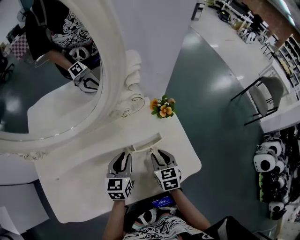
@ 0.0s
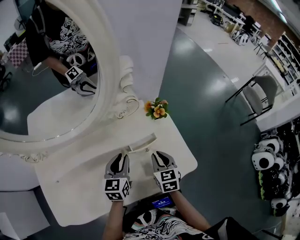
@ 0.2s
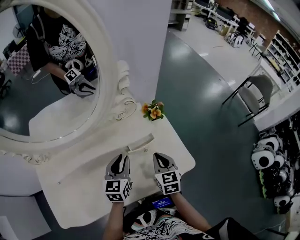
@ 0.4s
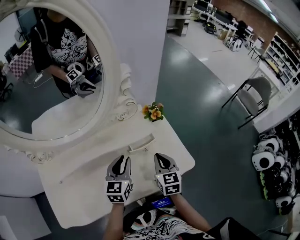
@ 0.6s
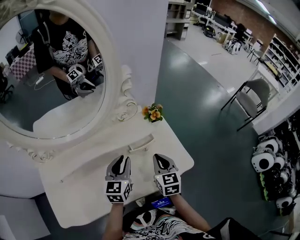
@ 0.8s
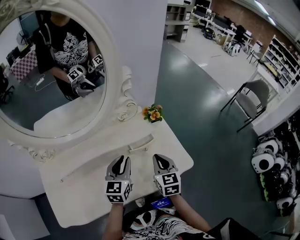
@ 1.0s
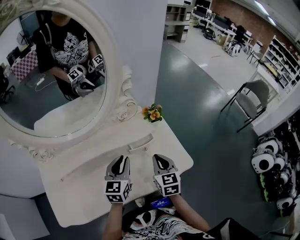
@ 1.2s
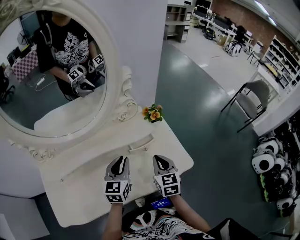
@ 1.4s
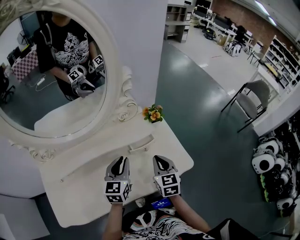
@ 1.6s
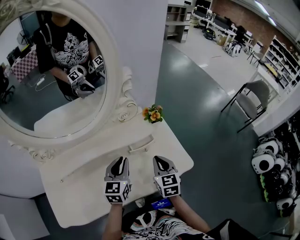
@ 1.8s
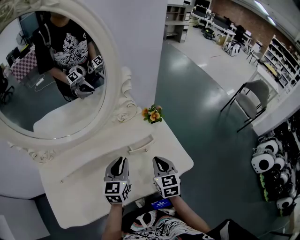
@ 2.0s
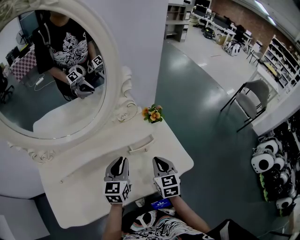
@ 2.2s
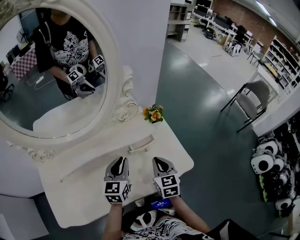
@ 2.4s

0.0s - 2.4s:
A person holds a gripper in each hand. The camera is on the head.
0.0s - 1.2s: The left gripper shifts about 10 cm upward. Meanwhile the right gripper moves upward and backward, some 10 cm, and closes its fingers.
1.2s - 2.4s: The grippers make only small movements.

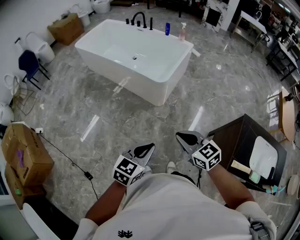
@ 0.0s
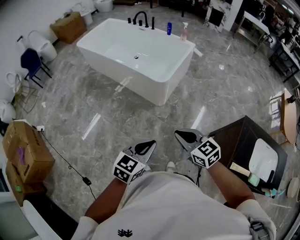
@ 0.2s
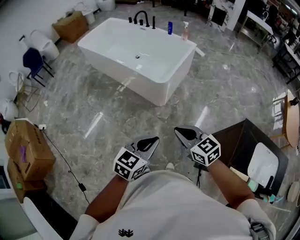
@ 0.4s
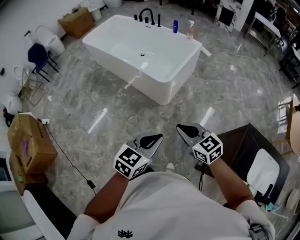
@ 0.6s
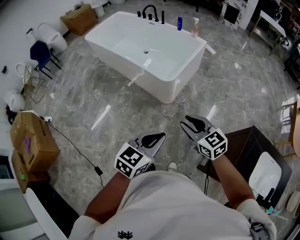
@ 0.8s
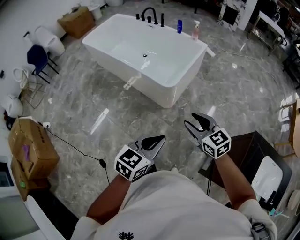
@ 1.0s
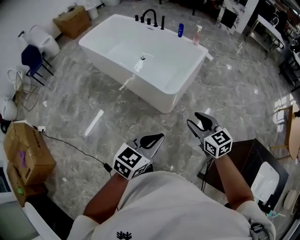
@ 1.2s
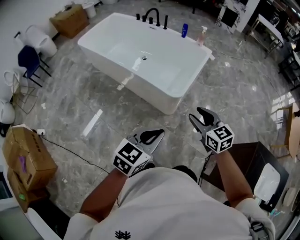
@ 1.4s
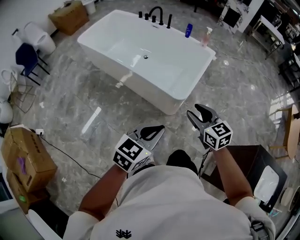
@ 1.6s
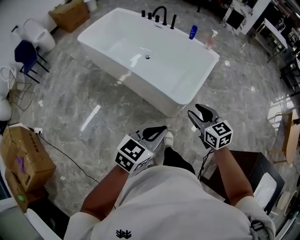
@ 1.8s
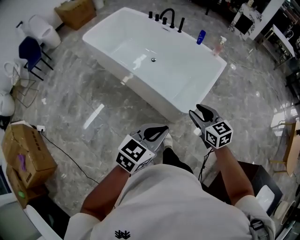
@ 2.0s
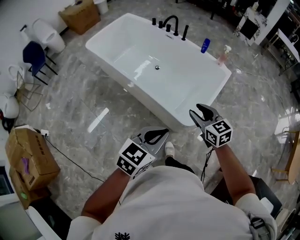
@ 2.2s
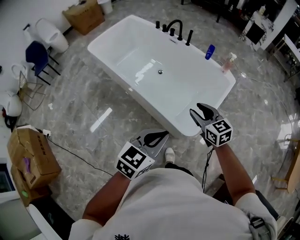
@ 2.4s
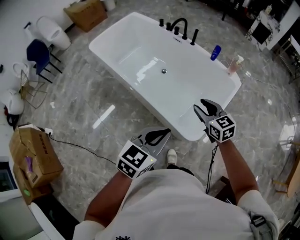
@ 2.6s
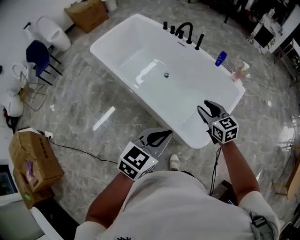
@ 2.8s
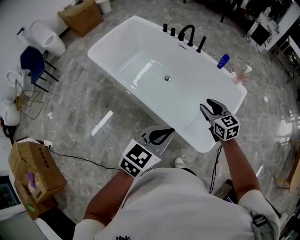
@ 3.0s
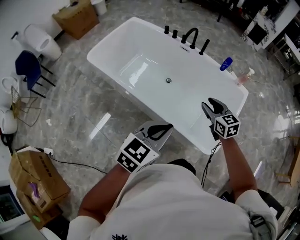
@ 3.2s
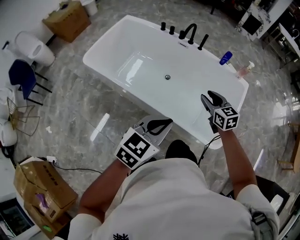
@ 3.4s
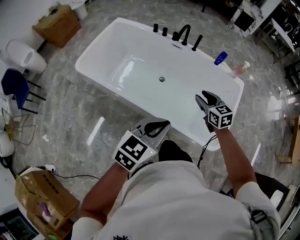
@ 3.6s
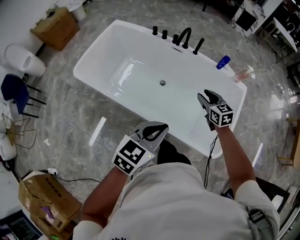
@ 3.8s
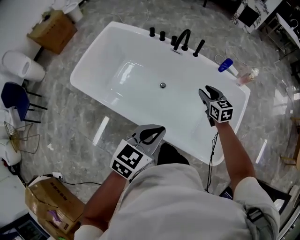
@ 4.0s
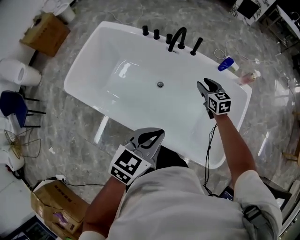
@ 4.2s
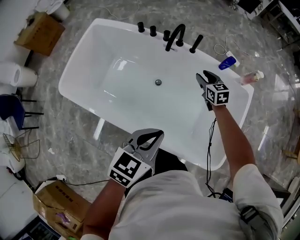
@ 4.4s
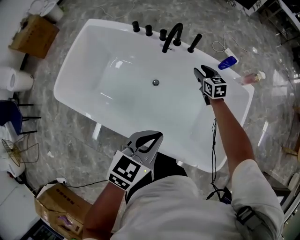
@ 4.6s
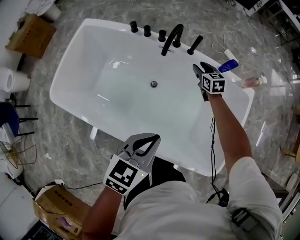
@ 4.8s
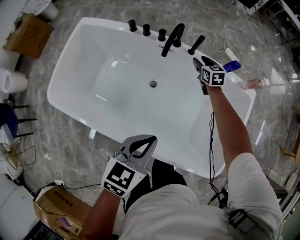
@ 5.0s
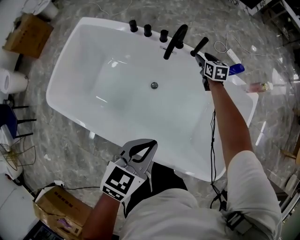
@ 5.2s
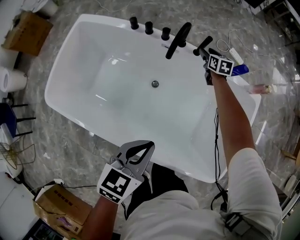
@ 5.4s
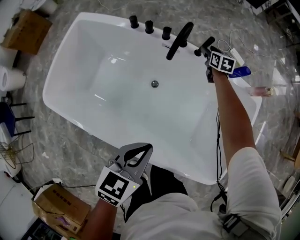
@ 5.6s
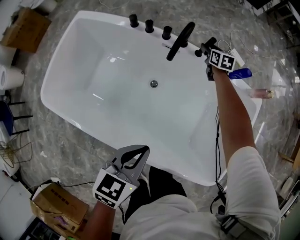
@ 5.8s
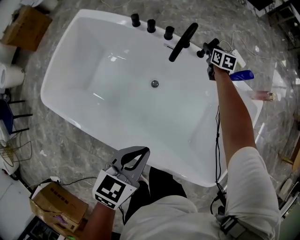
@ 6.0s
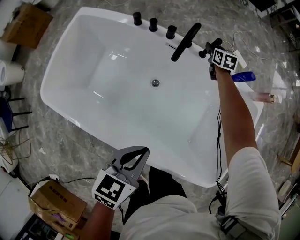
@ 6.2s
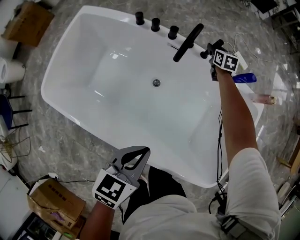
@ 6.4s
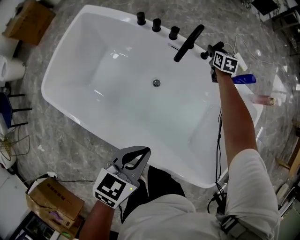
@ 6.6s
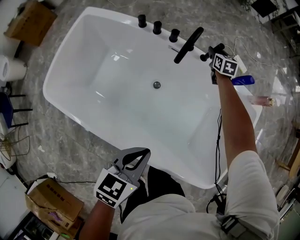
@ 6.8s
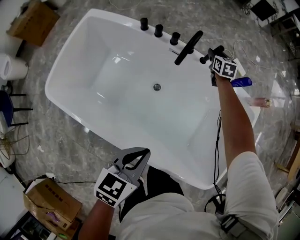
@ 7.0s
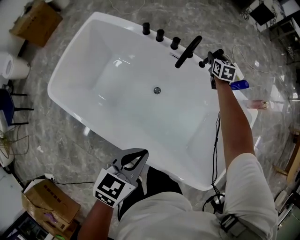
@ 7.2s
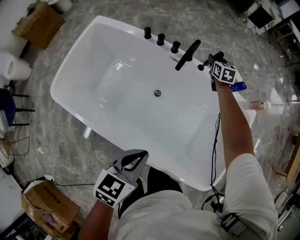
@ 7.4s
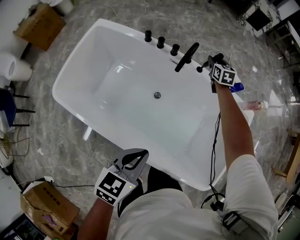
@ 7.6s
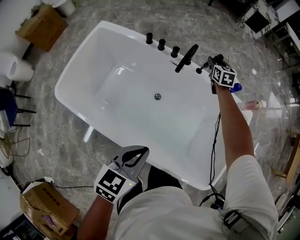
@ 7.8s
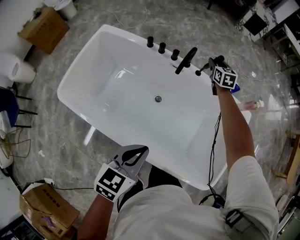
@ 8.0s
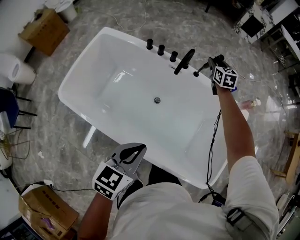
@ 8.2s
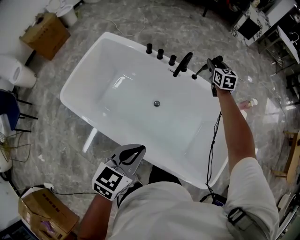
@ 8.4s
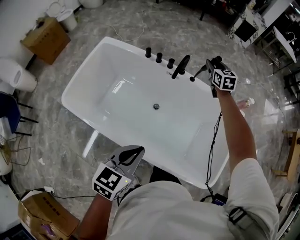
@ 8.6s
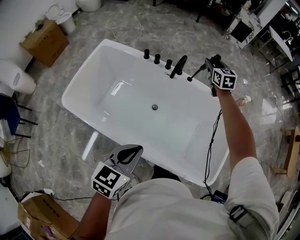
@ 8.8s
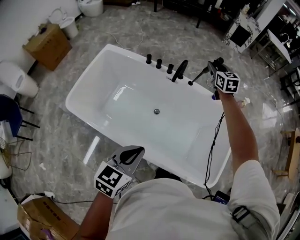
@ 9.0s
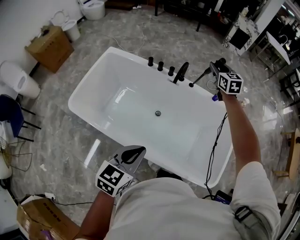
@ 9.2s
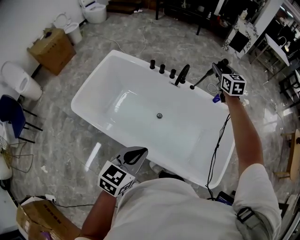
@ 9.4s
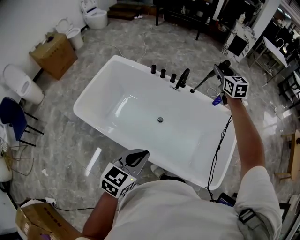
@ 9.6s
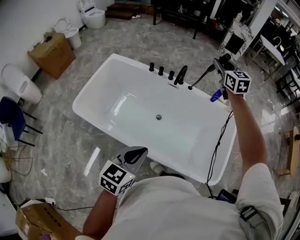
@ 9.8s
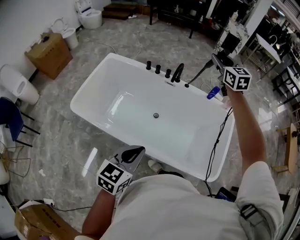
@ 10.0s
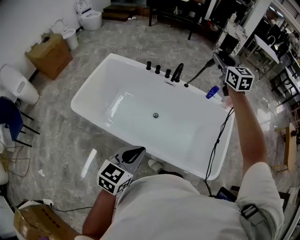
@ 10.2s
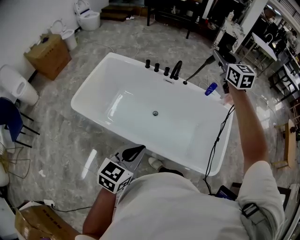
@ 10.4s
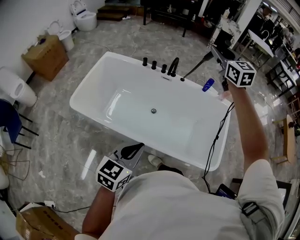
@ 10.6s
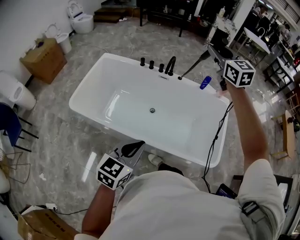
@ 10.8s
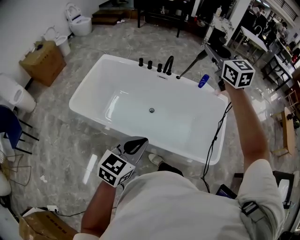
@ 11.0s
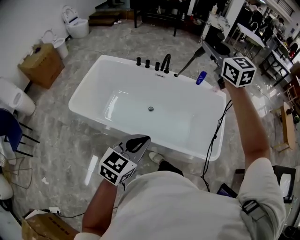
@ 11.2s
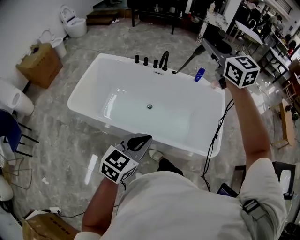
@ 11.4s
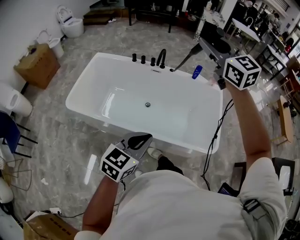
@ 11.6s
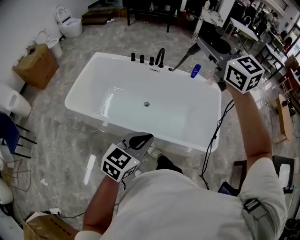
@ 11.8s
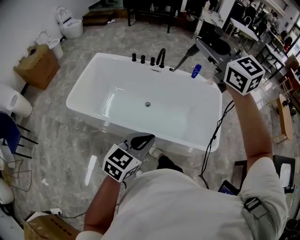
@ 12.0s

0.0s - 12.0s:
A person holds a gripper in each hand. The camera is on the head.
0.0s - 1.6s: The two grippers go some 35 cm forward. The right gripper opens.
1.6s - 3.0s: The pair of grippers is taken forward, approximately 50 cm.
3.0s - 4.4s: The right gripper travels forward by approximately 40 cm, and turns by approximately 20 degrees. The left gripper heads forward and to the left, covering roughly 35 cm.
4.4s - 6.0s: The right gripper goes about 30 cm forward and downward. The left gripper heads downward, forward and to the left, covering roughly 15 cm.
6.0s - 7.6s: The left gripper moves upward and backward, approximately 10 cm; the right gripper travels upward by roughly 15 cm.
7.6s - 9.0s: The right gripper heads upward and backward, covering approximately 30 cm, while the left gripper heads backward and upward, covering roughly 15 cm.
9.0s - 10.4s: The right gripper shifts roughly 30 cm upward and backward. Meanwhile the left gripper shifts approximately 15 cm backward.
10.4s - 12.0s: The left gripper is displaced backward and to the right by approximately 10 cm. Meanwhile the right gripper is displaced backward by approximately 30 cm.

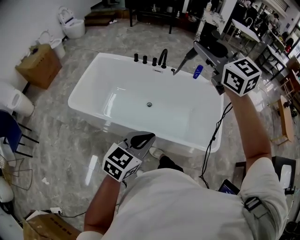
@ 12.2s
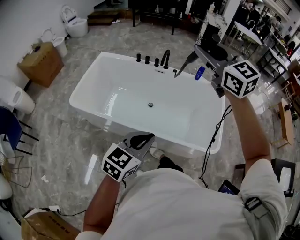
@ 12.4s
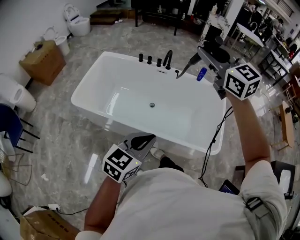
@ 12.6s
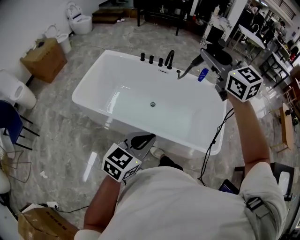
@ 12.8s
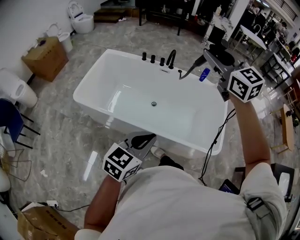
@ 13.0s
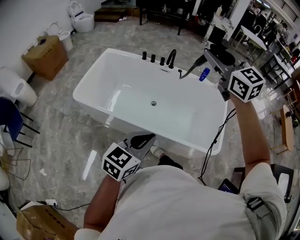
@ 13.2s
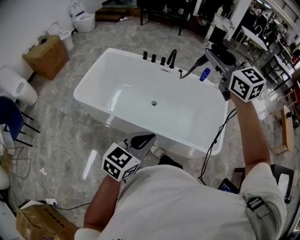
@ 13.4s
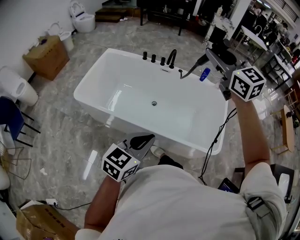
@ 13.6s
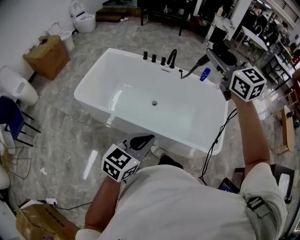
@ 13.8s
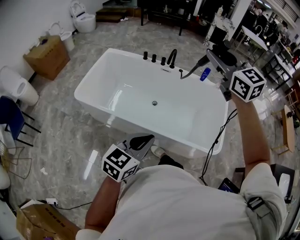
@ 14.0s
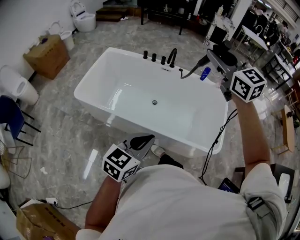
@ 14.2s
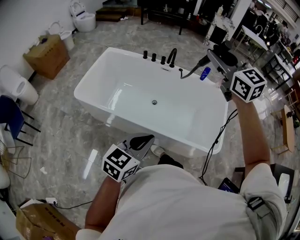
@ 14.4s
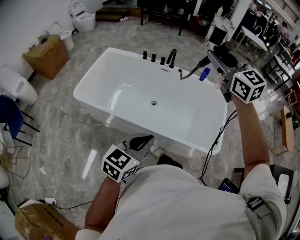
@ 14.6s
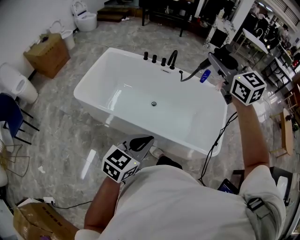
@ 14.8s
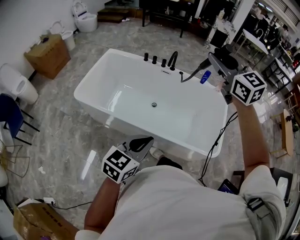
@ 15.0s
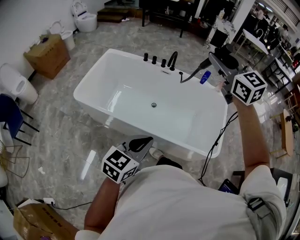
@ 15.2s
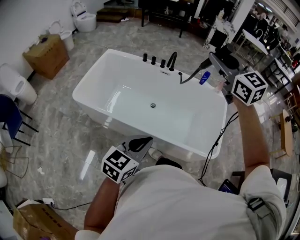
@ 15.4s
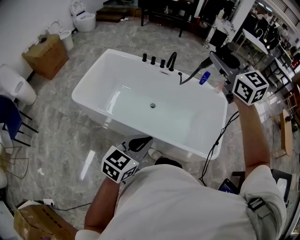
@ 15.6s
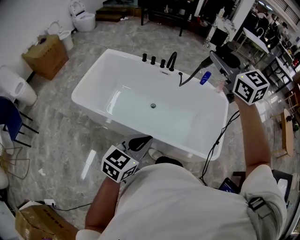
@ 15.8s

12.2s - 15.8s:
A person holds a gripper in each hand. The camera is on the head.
12.2s - 15.8s: The grippers make only small movements.

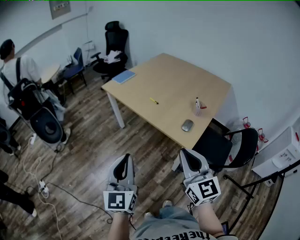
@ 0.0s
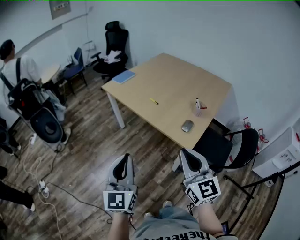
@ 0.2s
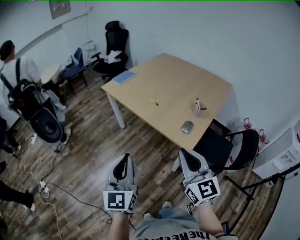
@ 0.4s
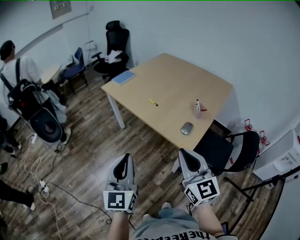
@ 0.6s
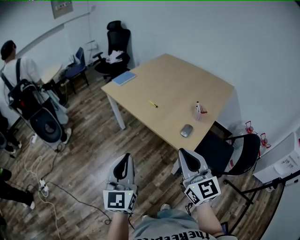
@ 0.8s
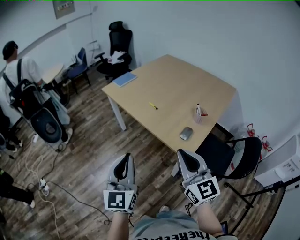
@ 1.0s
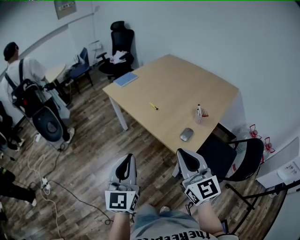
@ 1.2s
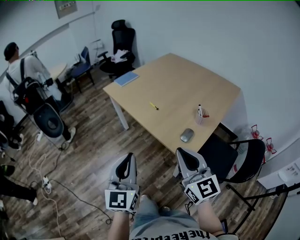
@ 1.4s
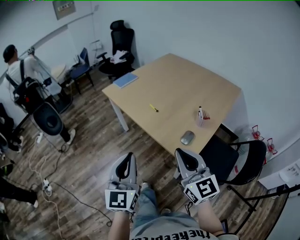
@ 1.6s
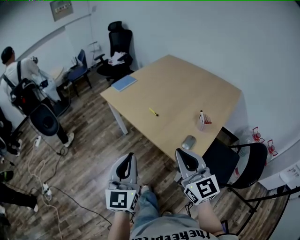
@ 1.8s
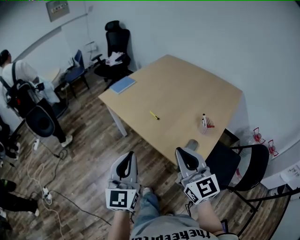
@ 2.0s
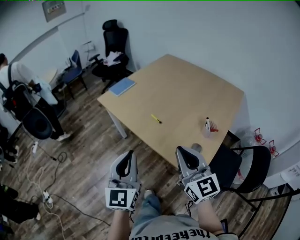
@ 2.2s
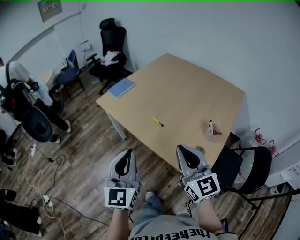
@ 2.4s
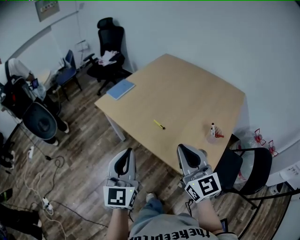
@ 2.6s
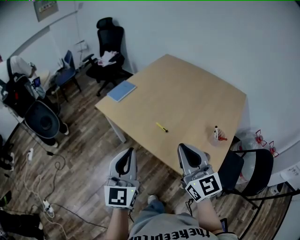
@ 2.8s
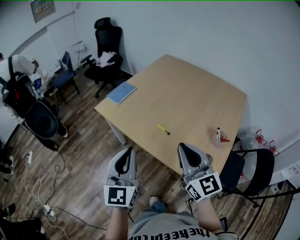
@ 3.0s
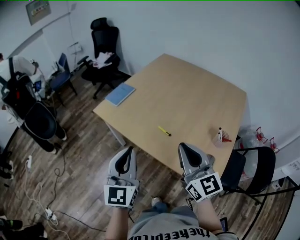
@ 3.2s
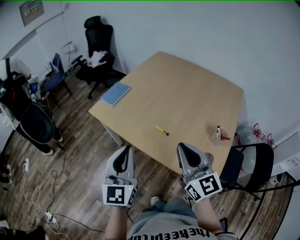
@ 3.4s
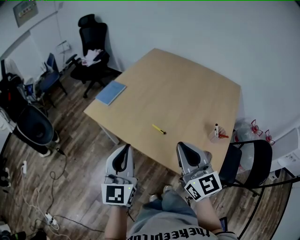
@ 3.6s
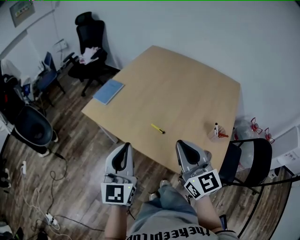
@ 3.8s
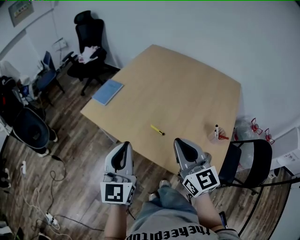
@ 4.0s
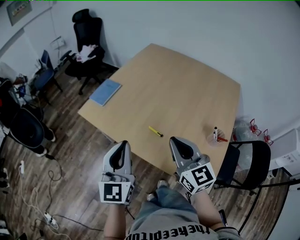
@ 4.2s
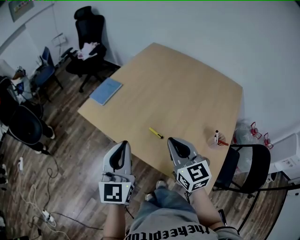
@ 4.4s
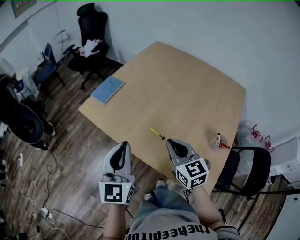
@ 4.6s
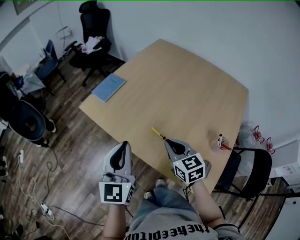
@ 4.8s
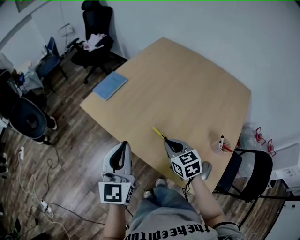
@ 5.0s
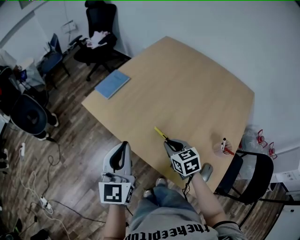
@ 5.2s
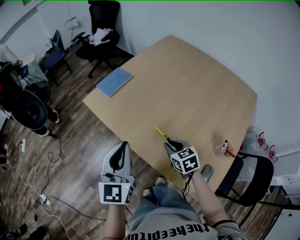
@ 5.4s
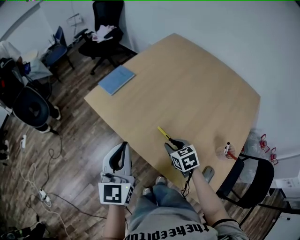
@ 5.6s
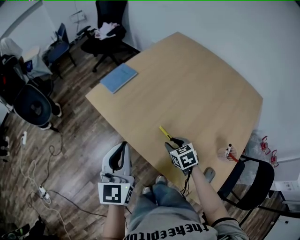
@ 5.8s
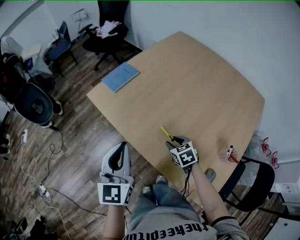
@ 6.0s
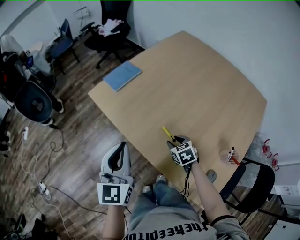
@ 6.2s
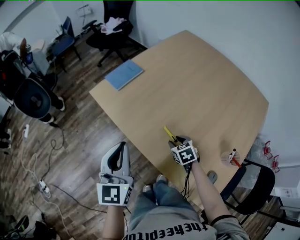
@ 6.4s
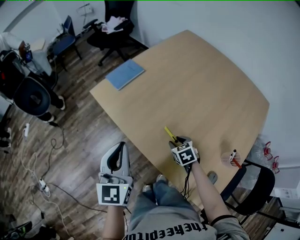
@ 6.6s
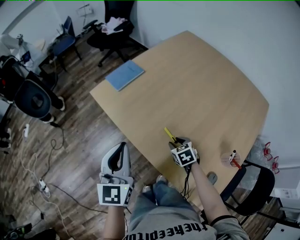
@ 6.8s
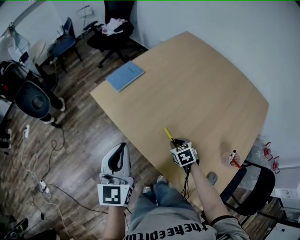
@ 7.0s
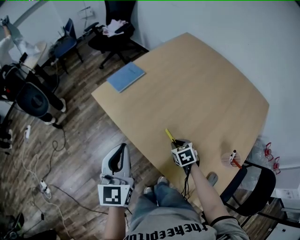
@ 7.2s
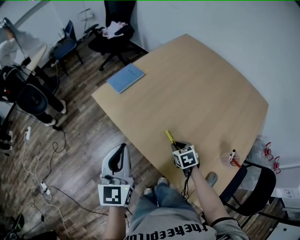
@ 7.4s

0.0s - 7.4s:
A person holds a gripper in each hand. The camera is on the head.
0.0s - 1.4s: The left gripper moves to the right and forward, some 10 cm. Meanwhile the right gripper travels forward and to the right by some 10 cm.
1.4s - 3.0s: The grippers both shift forward by roughly 25 cm.
3.0s - 4.4s: The right gripper heads forward and downward, covering approximately 15 cm; the left gripper goes about 10 cm forward.
4.4s - 6.0s: The left gripper ends up about 5 cm from where it was, while the right gripper goes roughly 25 cm downward, angles its fingers downward, by some 40 degrees, and opens up.
6.0s - 7.4s: The right gripper closes its fingers.
